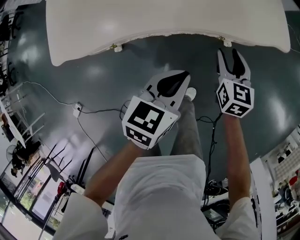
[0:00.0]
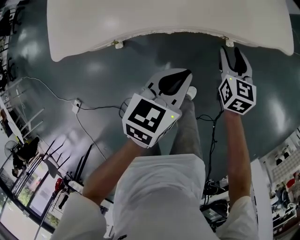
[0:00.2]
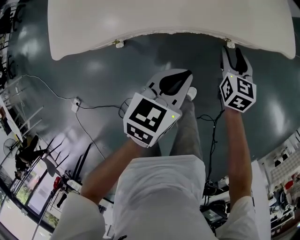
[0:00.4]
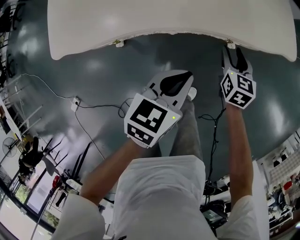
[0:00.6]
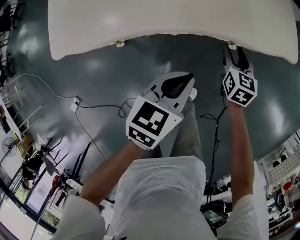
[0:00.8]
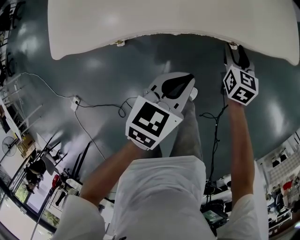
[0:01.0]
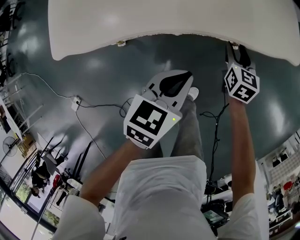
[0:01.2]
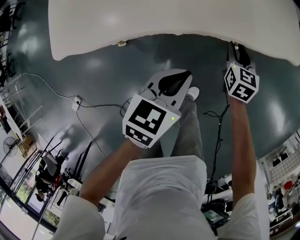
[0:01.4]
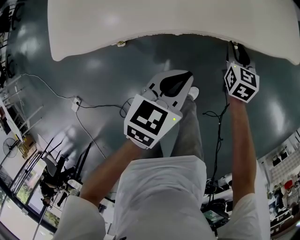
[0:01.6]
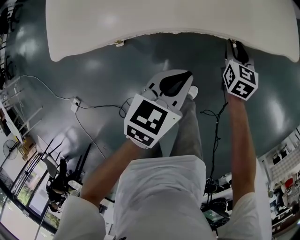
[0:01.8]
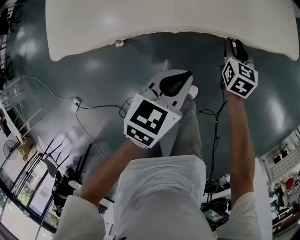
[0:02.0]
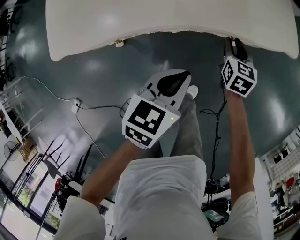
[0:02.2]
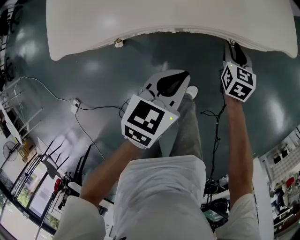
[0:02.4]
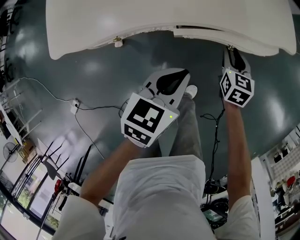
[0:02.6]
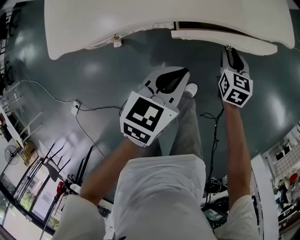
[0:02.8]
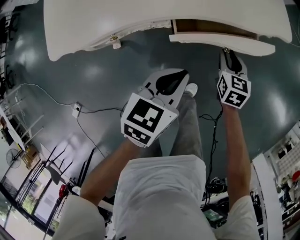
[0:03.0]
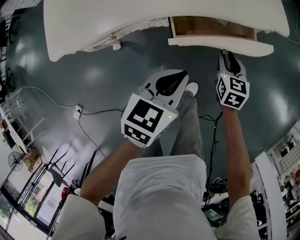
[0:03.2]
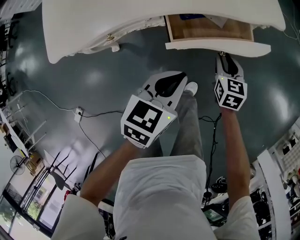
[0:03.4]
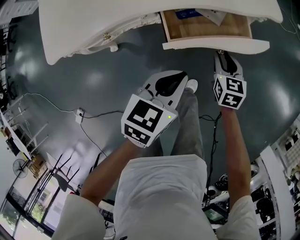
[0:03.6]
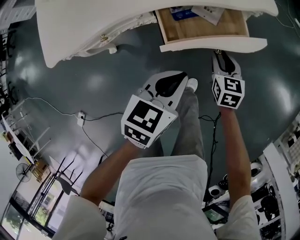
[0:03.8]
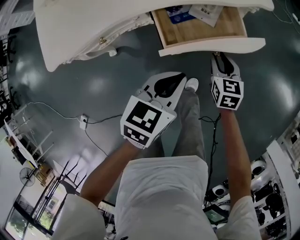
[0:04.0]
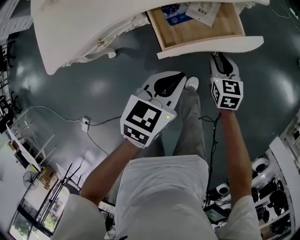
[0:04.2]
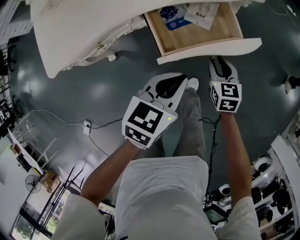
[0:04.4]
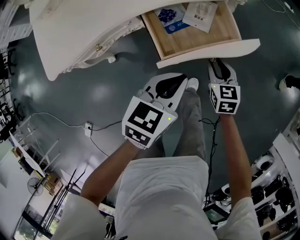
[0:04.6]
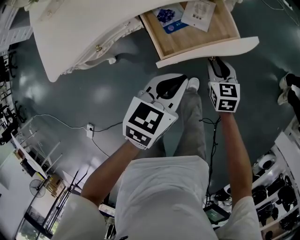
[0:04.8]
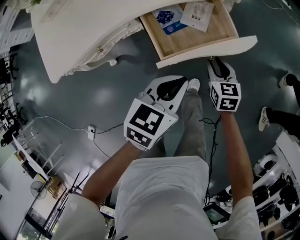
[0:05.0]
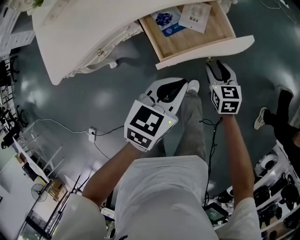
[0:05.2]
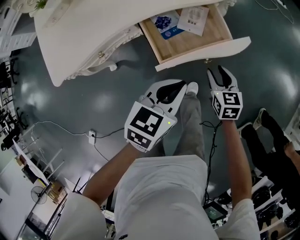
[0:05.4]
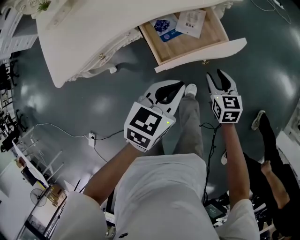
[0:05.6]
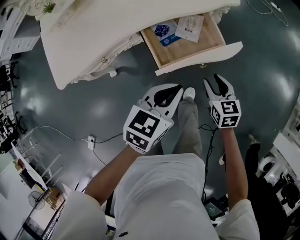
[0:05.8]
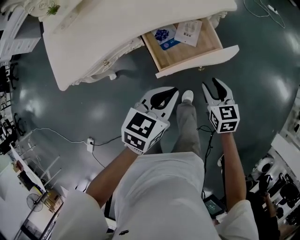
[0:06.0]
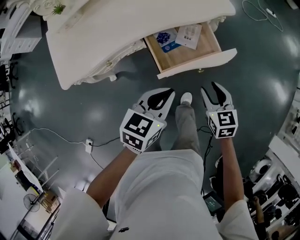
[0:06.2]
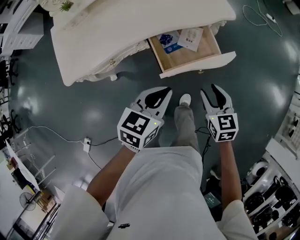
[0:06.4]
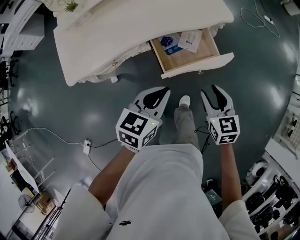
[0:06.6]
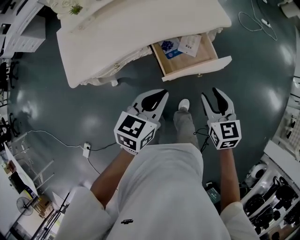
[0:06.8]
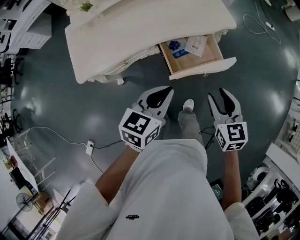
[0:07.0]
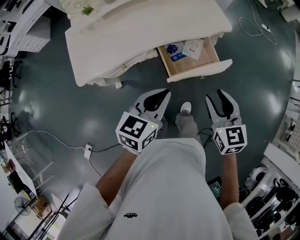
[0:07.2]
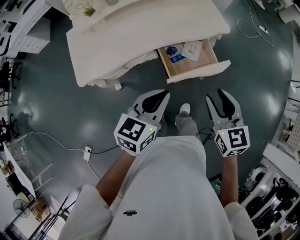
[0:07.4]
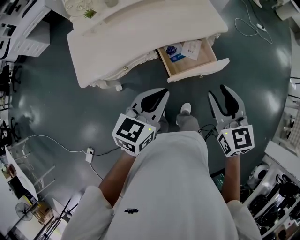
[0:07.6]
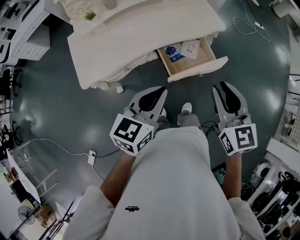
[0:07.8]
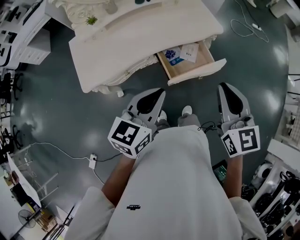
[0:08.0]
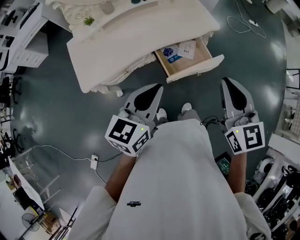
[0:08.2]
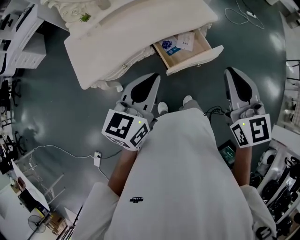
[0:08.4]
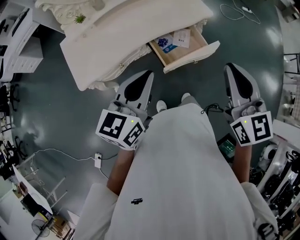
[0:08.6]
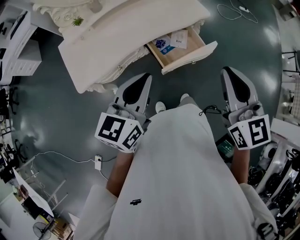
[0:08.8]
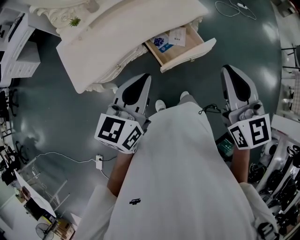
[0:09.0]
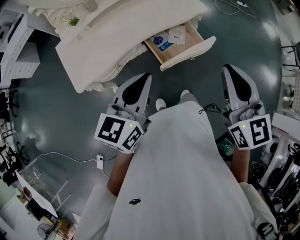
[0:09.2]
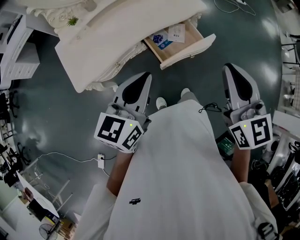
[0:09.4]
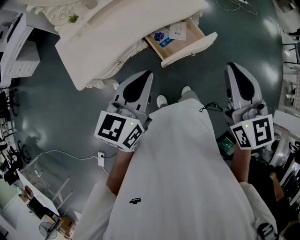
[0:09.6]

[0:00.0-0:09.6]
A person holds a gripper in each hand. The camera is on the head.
0:00.0 to 0:01.6: The right gripper shifts about 5 cm downward.
0:01.6 to 0:03.2: The left gripper shifts by some 5 cm; the right gripper shifts some 10 cm backward and to the right.
0:03.2 to 0:04.8: The right gripper travels backward by some 5 cm.
0:04.8 to 0:06.4: The right gripper goes roughly 20 cm upward and backward; the left gripper shifts some 10 cm upward.
0:06.4 to 0:08.0: The left gripper is displaced upward and to the left by some 15 cm, while the right gripper heads upward, covering approximately 25 cm, turns by some 20 degrees, and closes up.
0:08.0 to 0:09.6: The right gripper travels upward by some 5 cm.

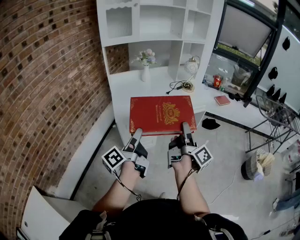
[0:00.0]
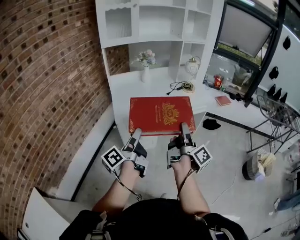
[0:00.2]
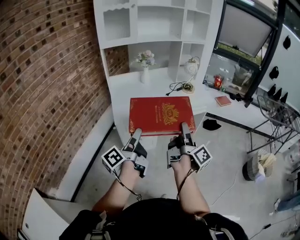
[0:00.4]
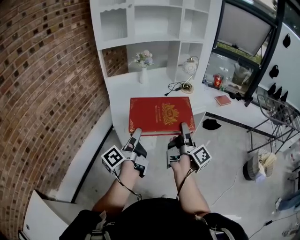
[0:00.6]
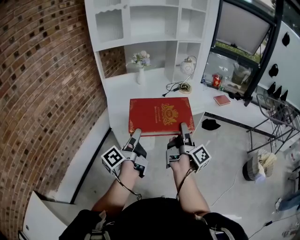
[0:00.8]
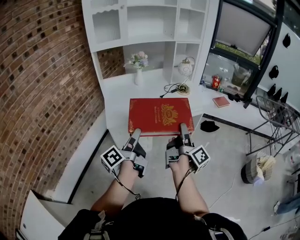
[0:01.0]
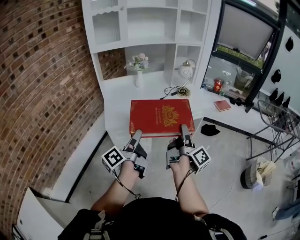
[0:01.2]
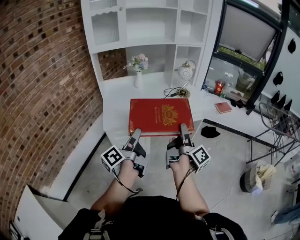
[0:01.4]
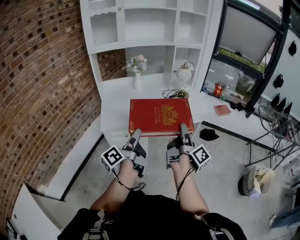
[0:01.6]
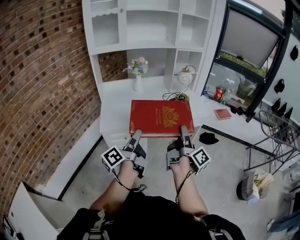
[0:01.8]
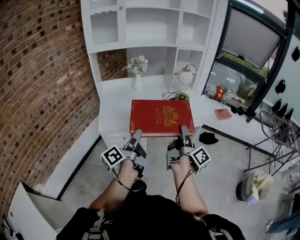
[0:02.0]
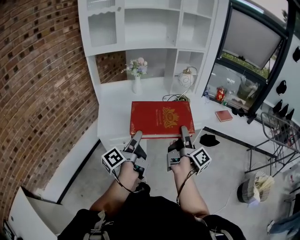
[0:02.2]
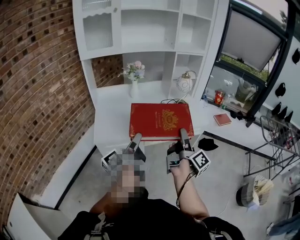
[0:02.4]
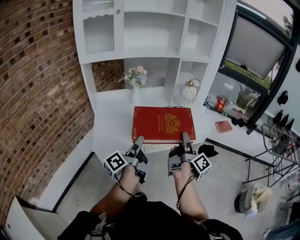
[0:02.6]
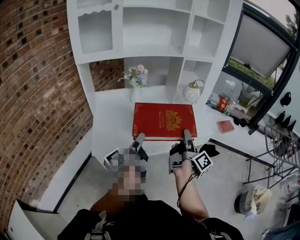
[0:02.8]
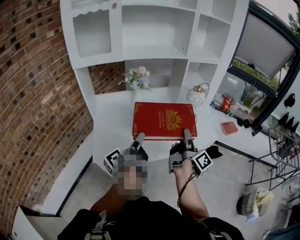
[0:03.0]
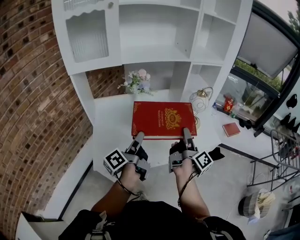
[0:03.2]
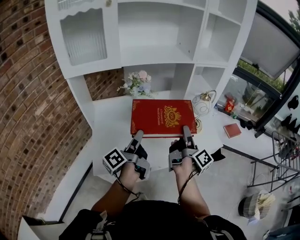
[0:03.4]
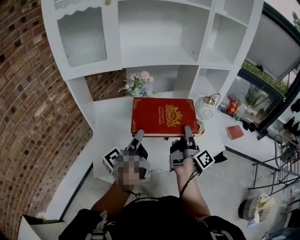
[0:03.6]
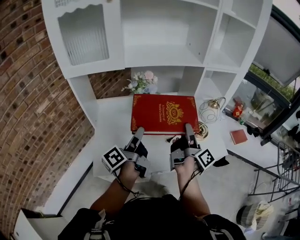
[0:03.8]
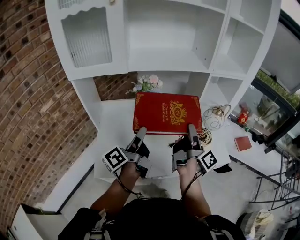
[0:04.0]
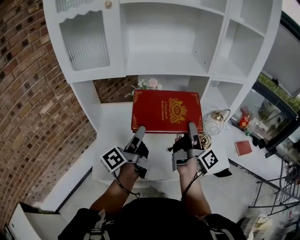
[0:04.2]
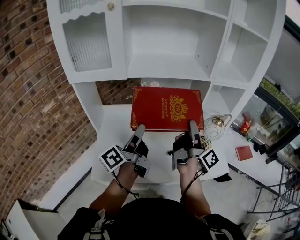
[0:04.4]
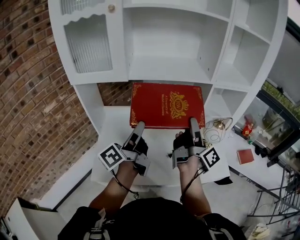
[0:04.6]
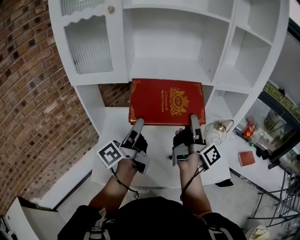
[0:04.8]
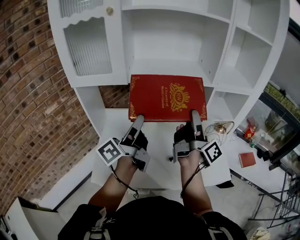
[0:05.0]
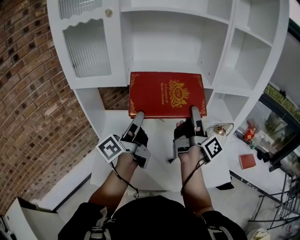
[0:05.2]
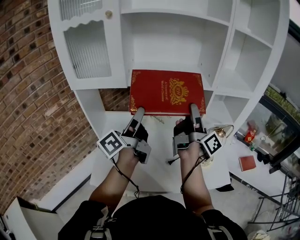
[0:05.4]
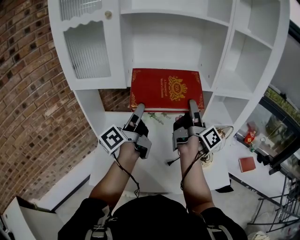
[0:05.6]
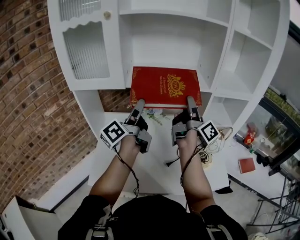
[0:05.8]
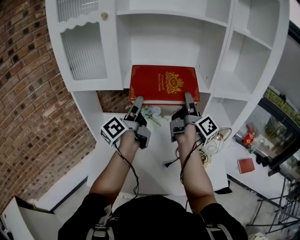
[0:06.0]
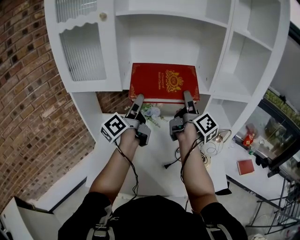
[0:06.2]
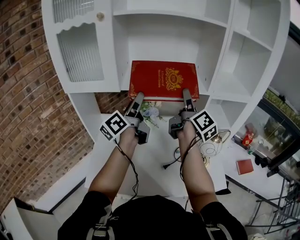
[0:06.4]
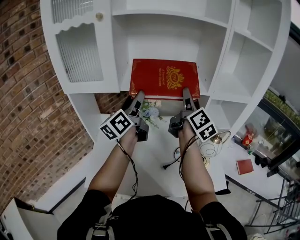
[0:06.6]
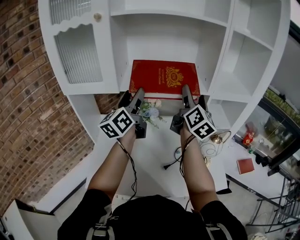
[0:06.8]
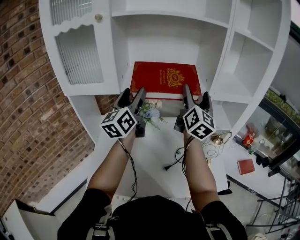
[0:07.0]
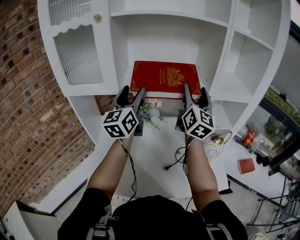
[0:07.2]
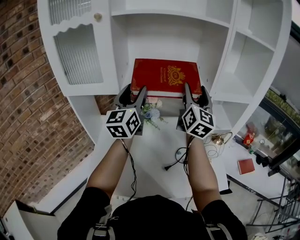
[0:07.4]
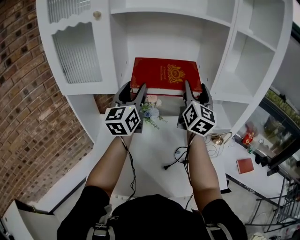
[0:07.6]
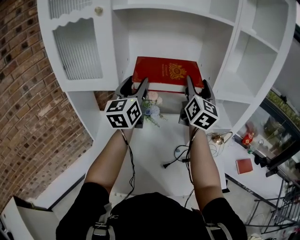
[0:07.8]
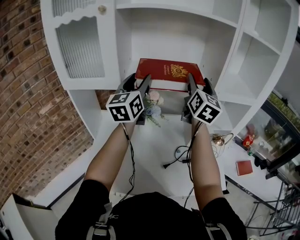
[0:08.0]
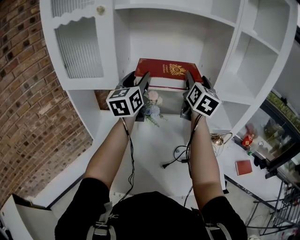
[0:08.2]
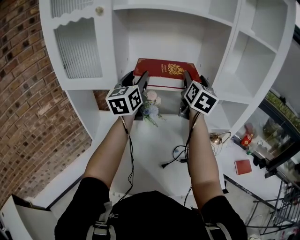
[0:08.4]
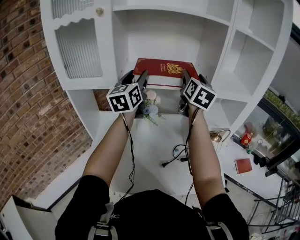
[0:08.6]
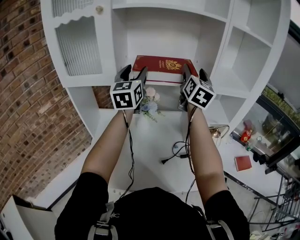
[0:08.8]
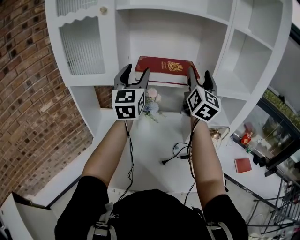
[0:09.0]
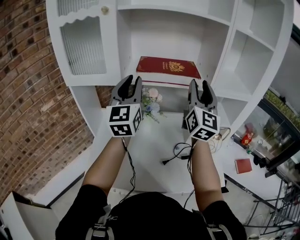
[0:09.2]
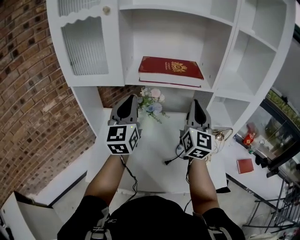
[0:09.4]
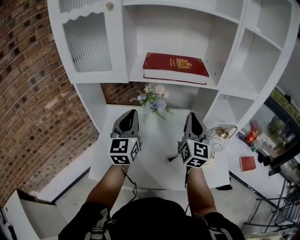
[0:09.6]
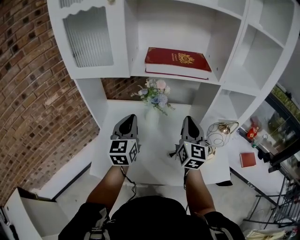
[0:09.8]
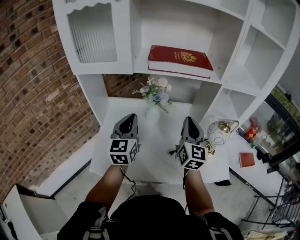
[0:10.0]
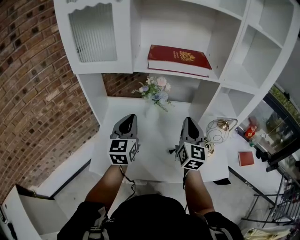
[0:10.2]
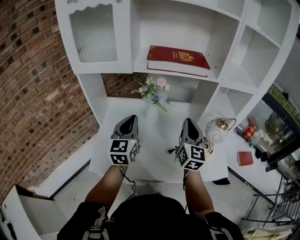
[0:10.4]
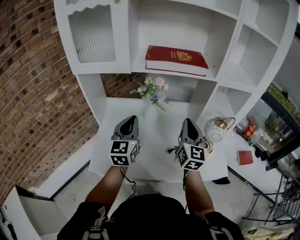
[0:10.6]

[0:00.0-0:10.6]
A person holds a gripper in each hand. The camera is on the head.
0:00.0 to 0:01.6: The two grippers go about 20 cm to the right and forward.
0:01.6 to 0:03.0: The grippers both shift forward by some 30 cm.
0:03.0 to 0:04.6: The right gripper heads forward, covering approximately 25 cm, while the left gripper is displaced forward and upward by roughly 25 cm.
0:04.6 to 0:06.0: The left gripper is displaced forward by roughly 15 cm; the right gripper goes some 15 cm forward and upward.
0:06.0 to 0:07.6: The left gripper heads upward and forward, covering some 10 cm, and twists roughly 60 degrees clockwise, seen from behind. Meanwhile the right gripper is displaced upward by approximately 5 cm, and rolls counterclockwise, seen from behind, by about 70 degrees.
0:07.6 to 0:09.0: The grippers stay close to where they were, moving slightly.
0:09.0 to 0:10.6: The two grippers go roughly 25 cm downward and backward. The left gripper changes its angle by roughly 20 degrees, and closes its fingers. Meanwhile the right gripper closes.

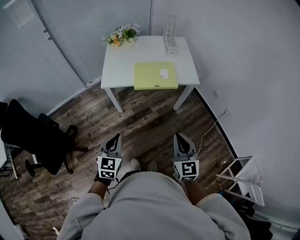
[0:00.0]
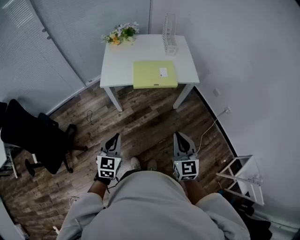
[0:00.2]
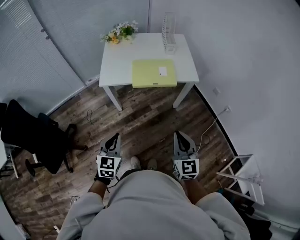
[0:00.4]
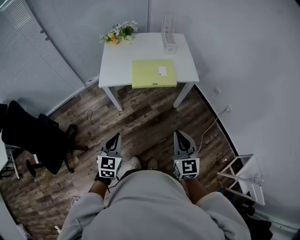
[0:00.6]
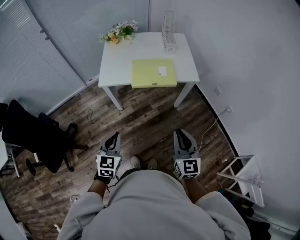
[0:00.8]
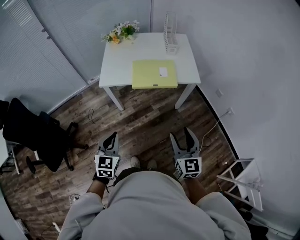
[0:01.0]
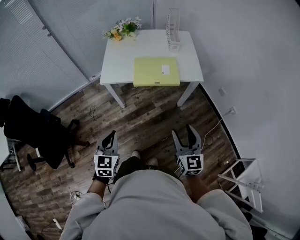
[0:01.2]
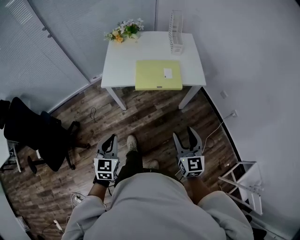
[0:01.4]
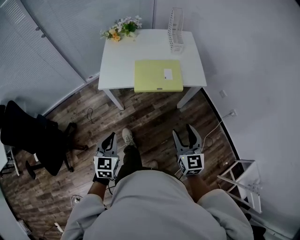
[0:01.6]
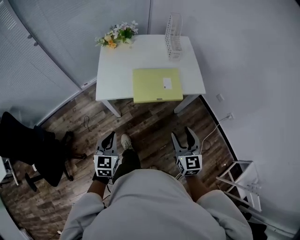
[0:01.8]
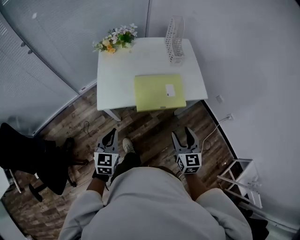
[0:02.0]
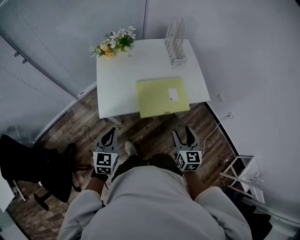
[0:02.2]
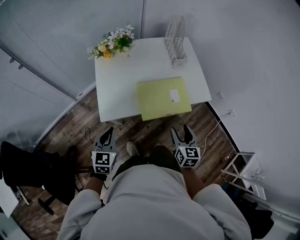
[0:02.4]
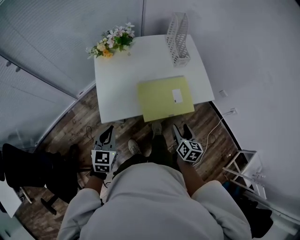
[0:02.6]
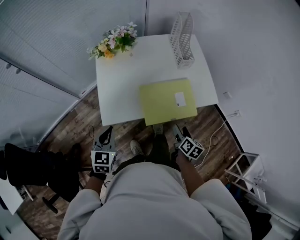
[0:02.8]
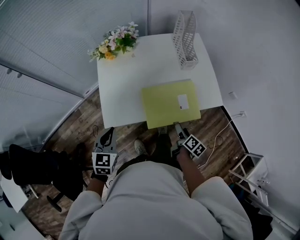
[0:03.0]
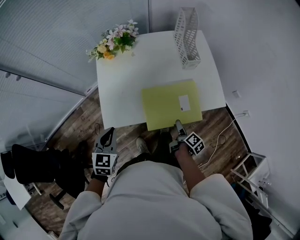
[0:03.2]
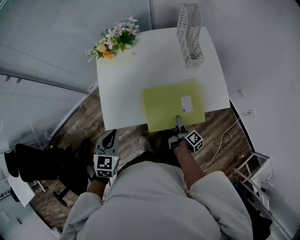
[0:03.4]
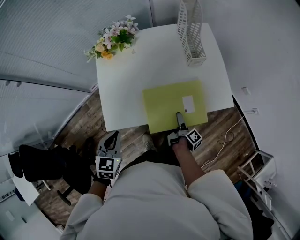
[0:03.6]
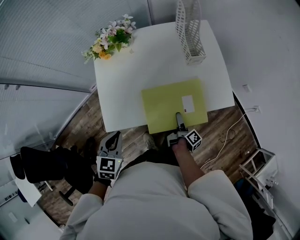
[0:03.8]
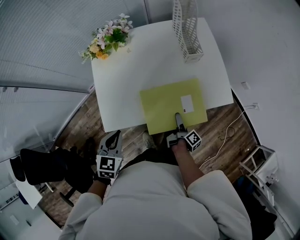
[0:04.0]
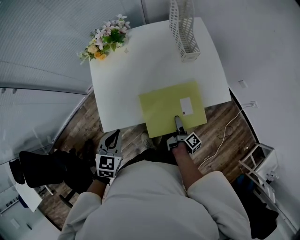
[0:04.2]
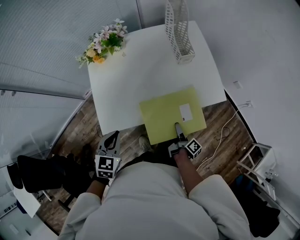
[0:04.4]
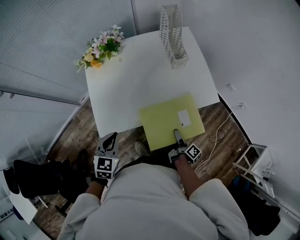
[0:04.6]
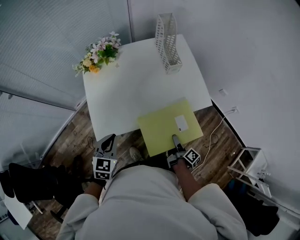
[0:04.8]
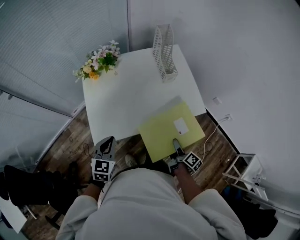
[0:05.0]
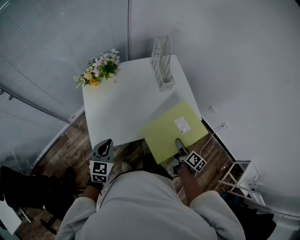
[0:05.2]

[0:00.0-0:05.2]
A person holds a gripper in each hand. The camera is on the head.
0:00.0 to 0:01.8: The grippers both shift forward by roughly 15 cm. The right gripper opens up.
0:01.8 to 0:03.4: The left gripper moves forward, some 25 cm. The right gripper goes approximately 35 cm downward and forward, and rotates around the line of its fingers by about 90 degrees, clockwise from behind.
0:03.4 to 0:05.2: The right gripper shifts roughly 15 cm upward and to the right, swivels approximately 30 degrees, and closes.
